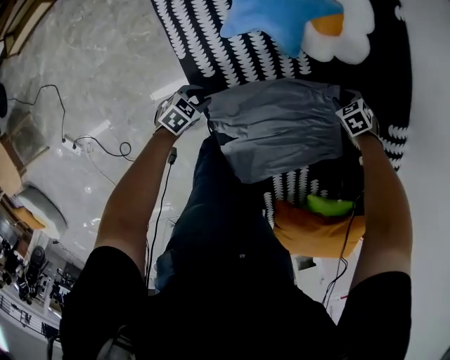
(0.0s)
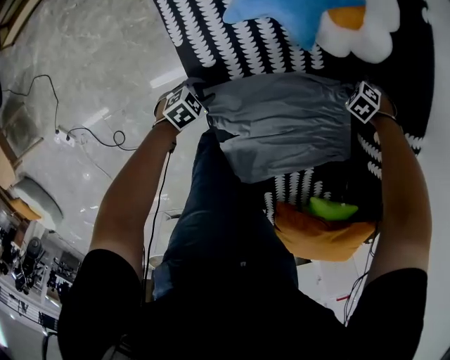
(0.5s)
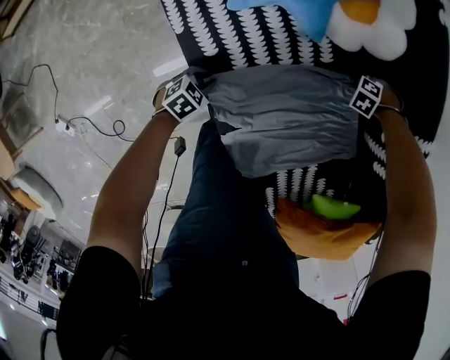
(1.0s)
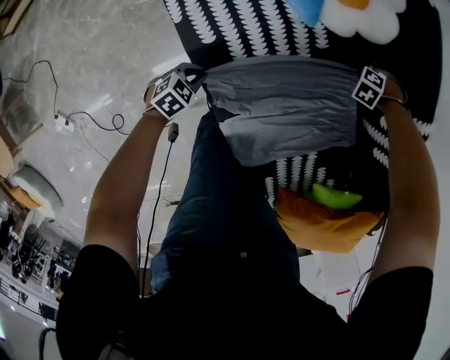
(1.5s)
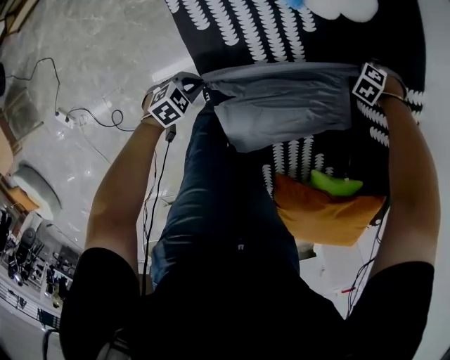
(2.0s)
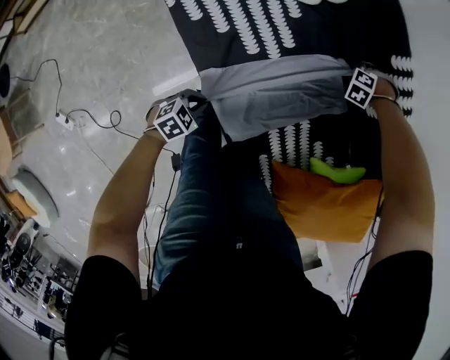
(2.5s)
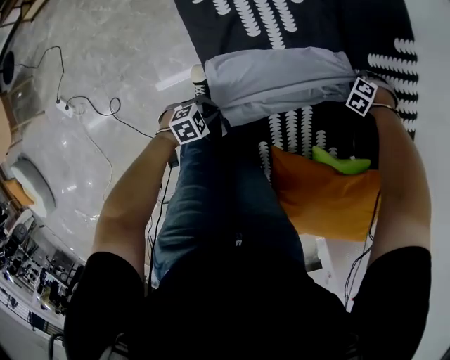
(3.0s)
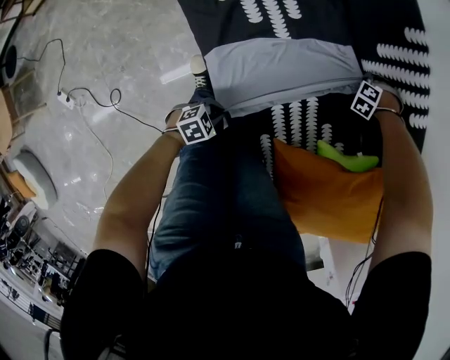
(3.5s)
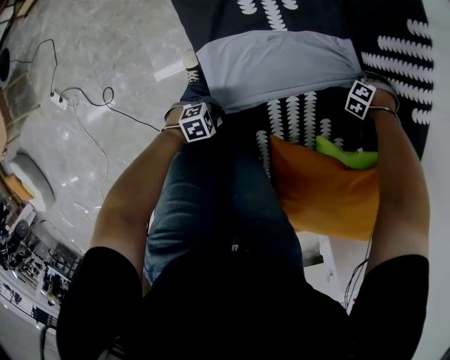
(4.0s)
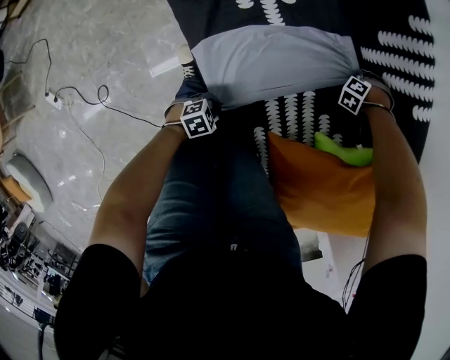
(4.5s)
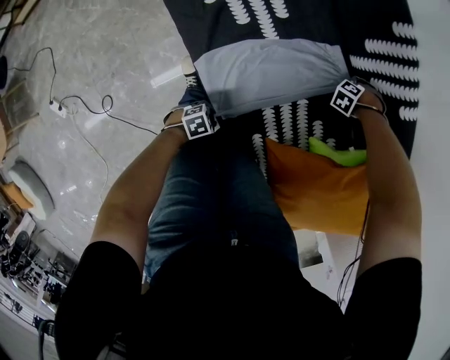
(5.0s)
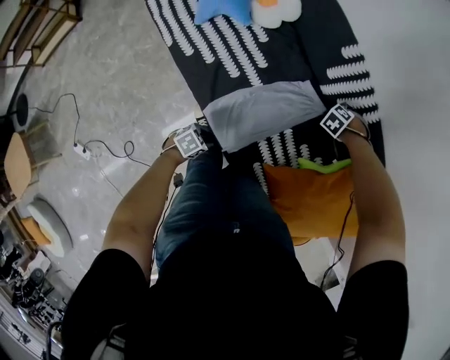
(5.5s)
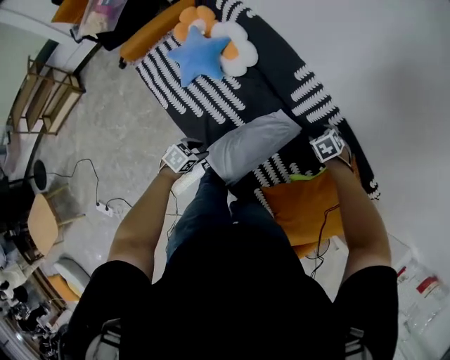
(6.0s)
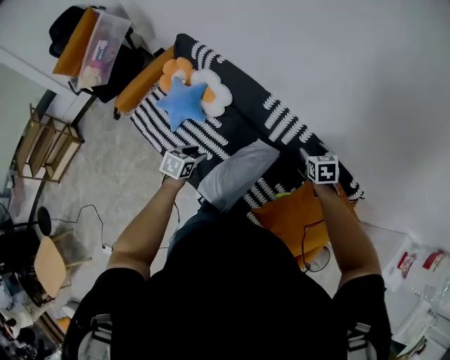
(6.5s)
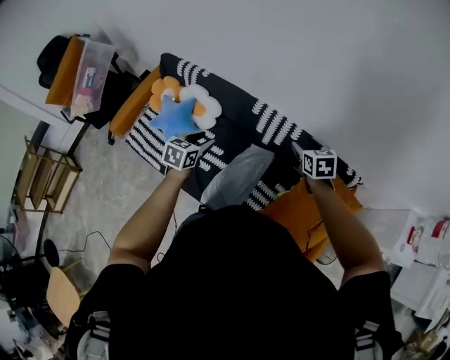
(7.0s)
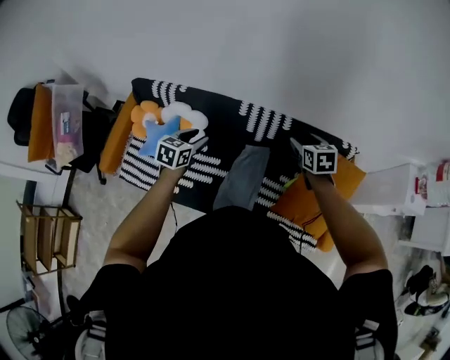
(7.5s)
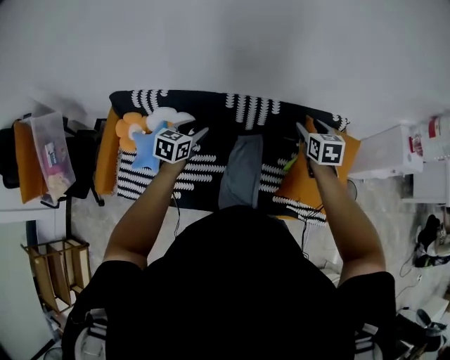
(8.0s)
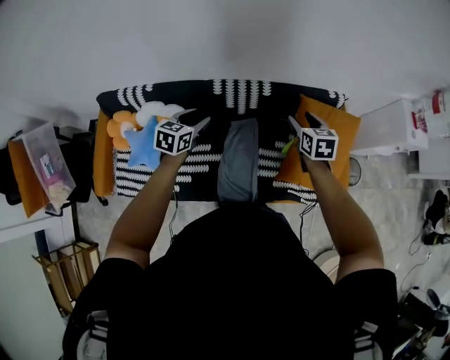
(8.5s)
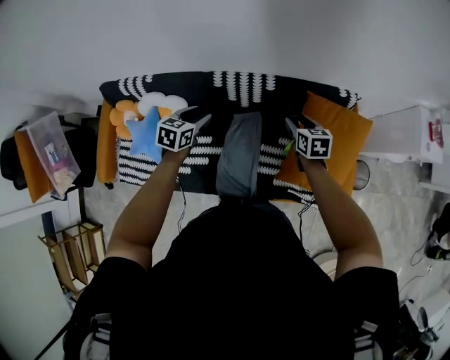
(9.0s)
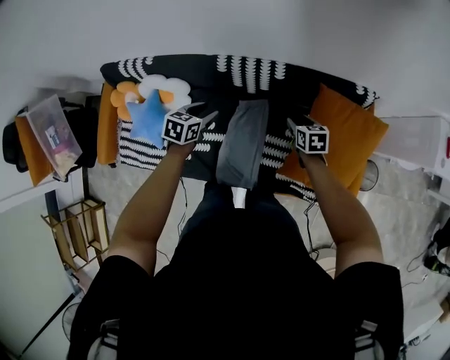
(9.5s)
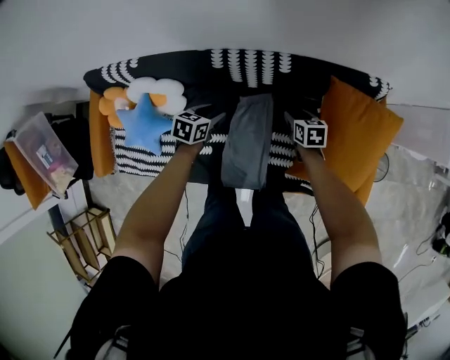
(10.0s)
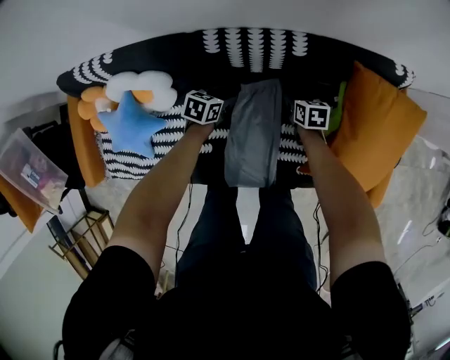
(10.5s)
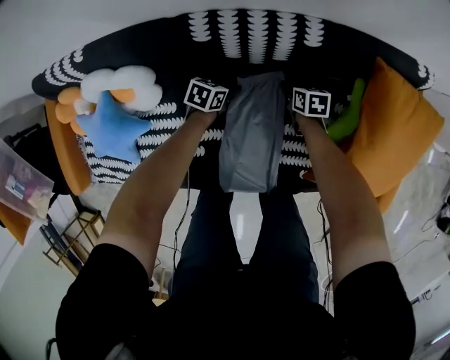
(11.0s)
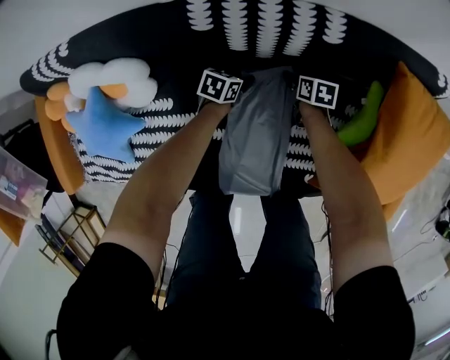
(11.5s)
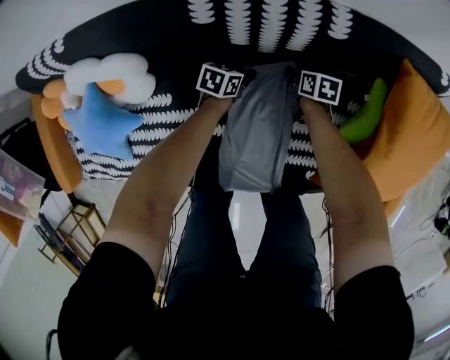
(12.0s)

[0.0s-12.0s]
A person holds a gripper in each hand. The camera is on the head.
0.0s to 2.0s: The right gripper goes downward and returns, roughly 10 cm each way, changes its angle by roughly 40 degrees, and closes up. Meanwhile the left gripper goes downward and returns, some 5 cm each way, and closes its fingers.
2.0s to 4.0s: The right gripper shifts by roughly 25 cm, while the left gripper moves roughly 35 cm.
4.0s to 6.0s: The grippers both shift upward by some 35 cm. The right gripper rolls clockwise, seen from behind, by some 70 degrees, and opens up; the left gripper opens its fingers.
6.0s to 8.0s: Both grippers move upward, roughly 30 cm. The right gripper twists roughly 70 degrees clockwise, seen from behind, while the left gripper turns by about 30 degrees.
8.0s to 10.0s: Both grippers travel together downward, some 35 cm. The left gripper swivels approximately 20 degrees; the right gripper changes its angle by roughly 30 degrees.
10.0s to 12.0s: Both grippers travel together downward, some 35 cm.

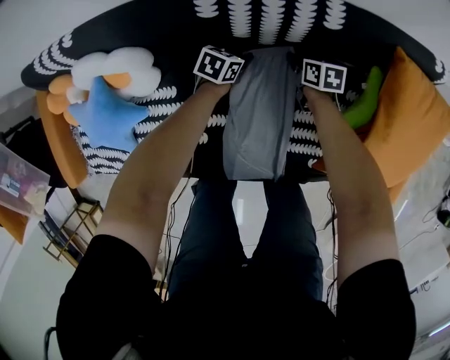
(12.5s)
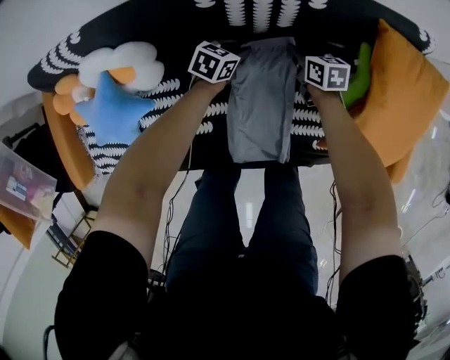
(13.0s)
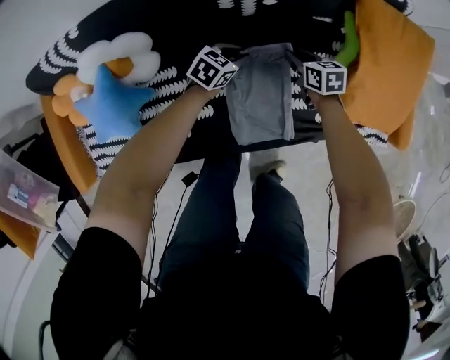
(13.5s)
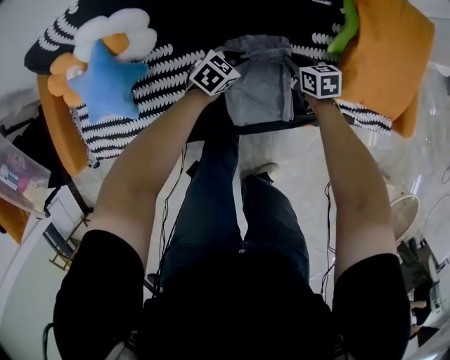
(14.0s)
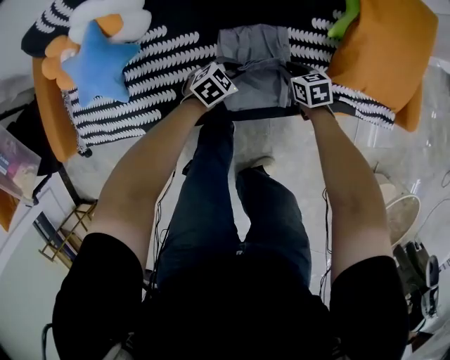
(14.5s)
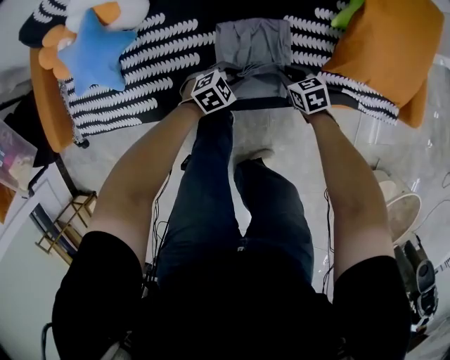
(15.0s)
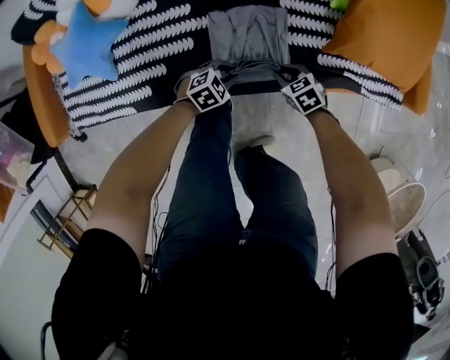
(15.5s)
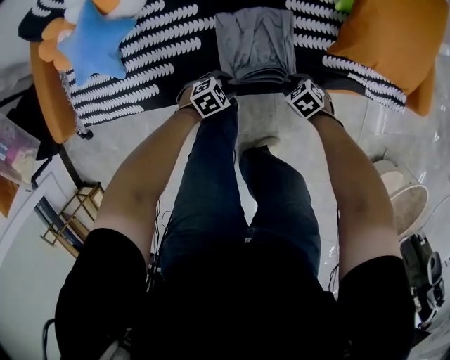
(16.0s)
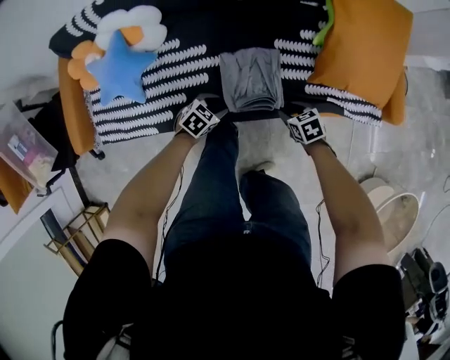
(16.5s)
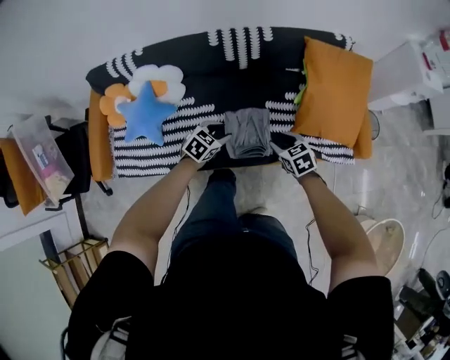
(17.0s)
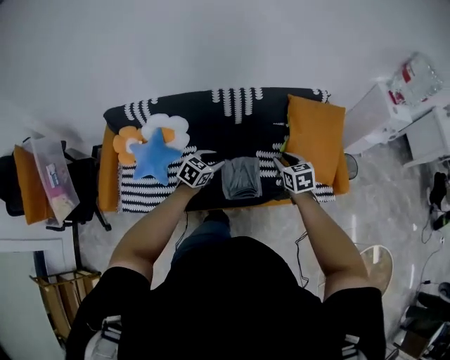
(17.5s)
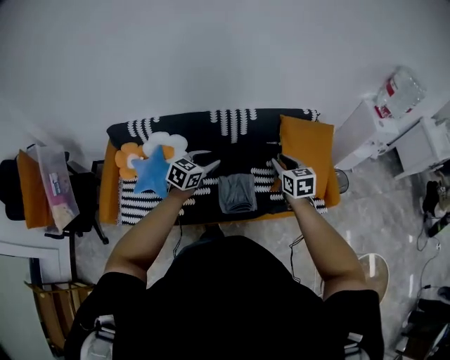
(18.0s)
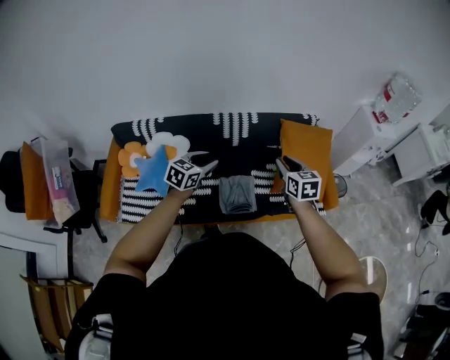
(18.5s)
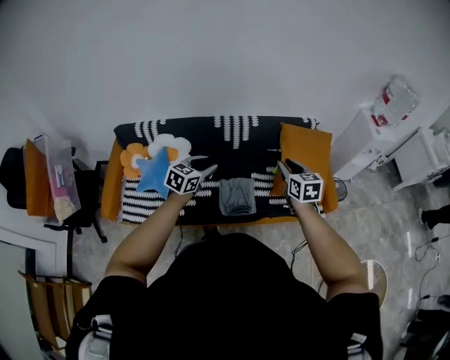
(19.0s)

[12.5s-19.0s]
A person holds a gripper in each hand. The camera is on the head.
12.5s to 14.5s: The grippers both shift backward by roughly 35 cm. The left gripper rotates some 40 degrees.
14.5s to 17.0s: Both grippers move upward, some 30 cm. The right gripper opens up; the left gripper opens its fingers.
17.0s to 19.0s: The two grippers go roughly 35 cm upward. The left gripper turns by roughly 20 degrees. The right gripper changes its angle by roughly 30 degrees.

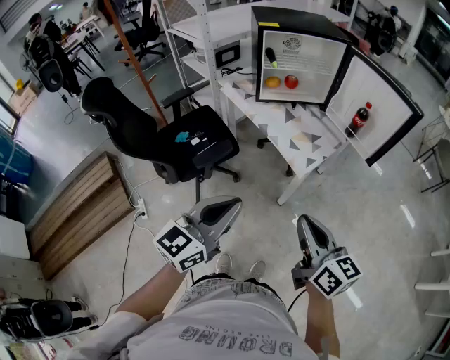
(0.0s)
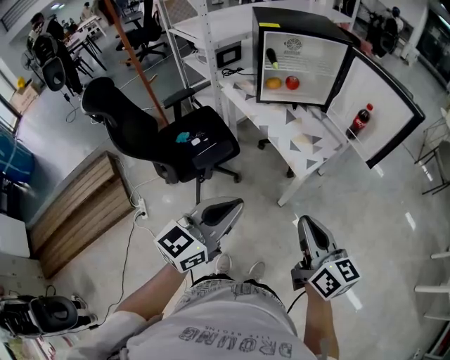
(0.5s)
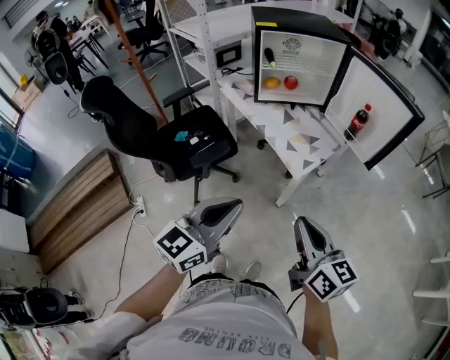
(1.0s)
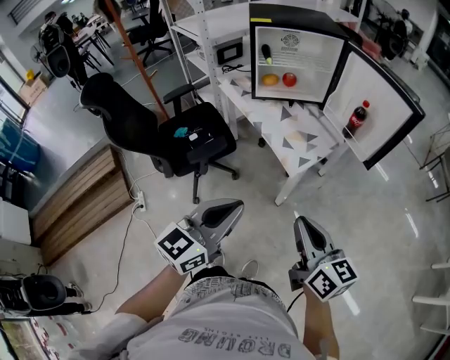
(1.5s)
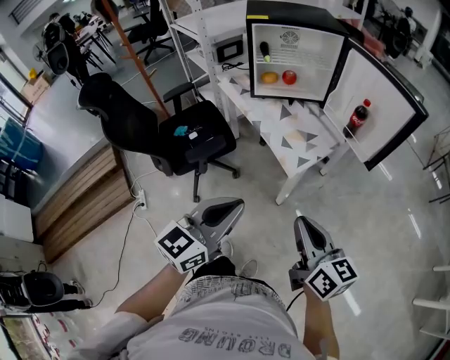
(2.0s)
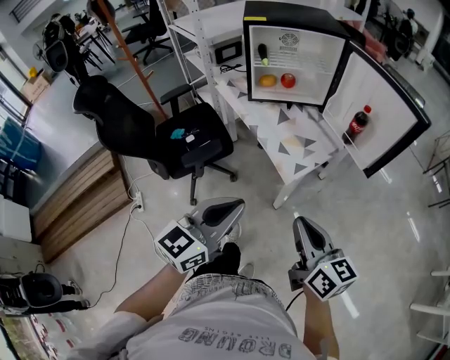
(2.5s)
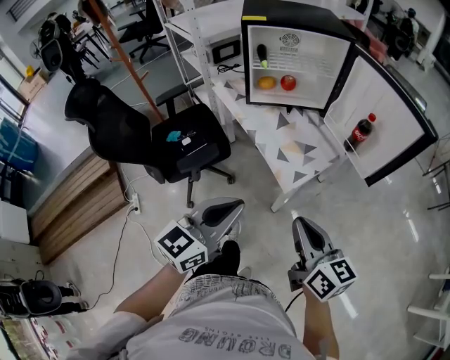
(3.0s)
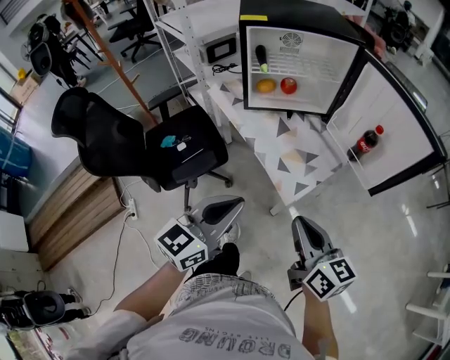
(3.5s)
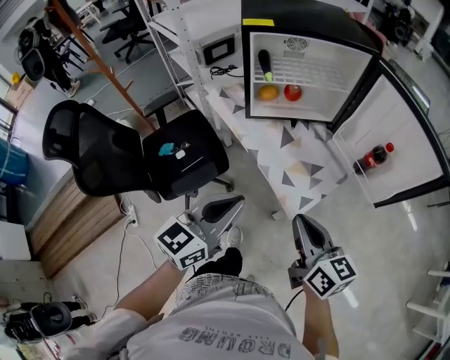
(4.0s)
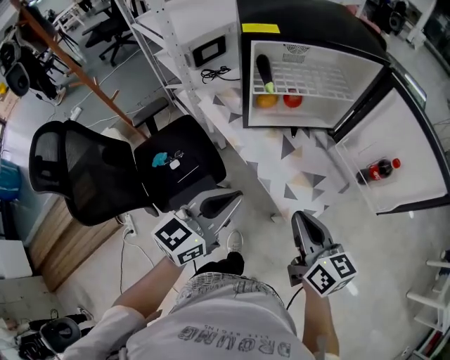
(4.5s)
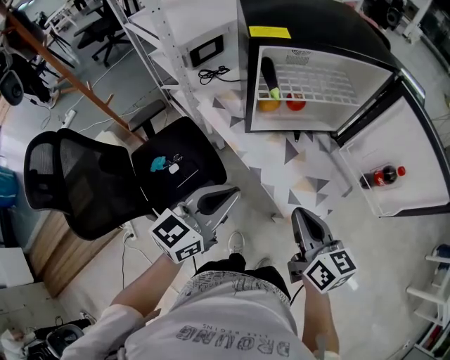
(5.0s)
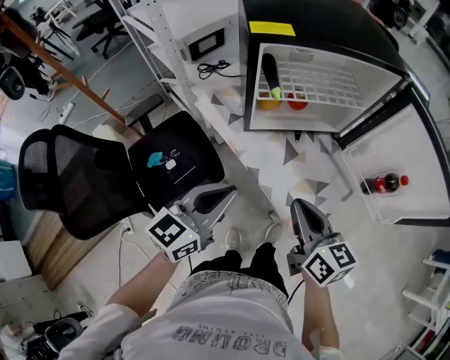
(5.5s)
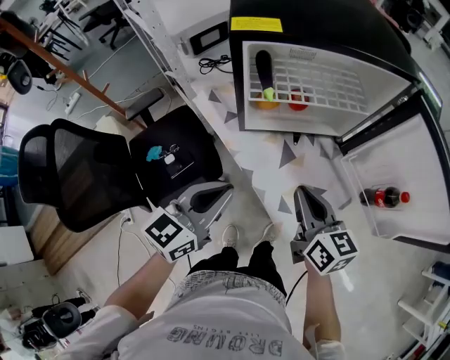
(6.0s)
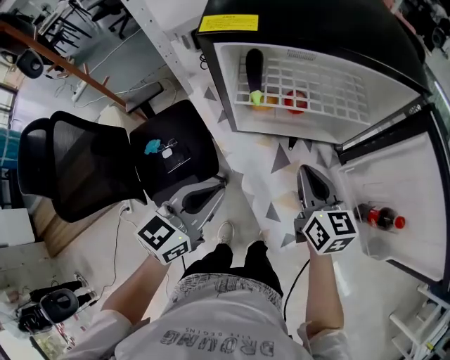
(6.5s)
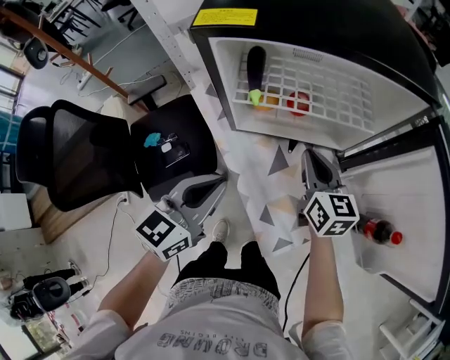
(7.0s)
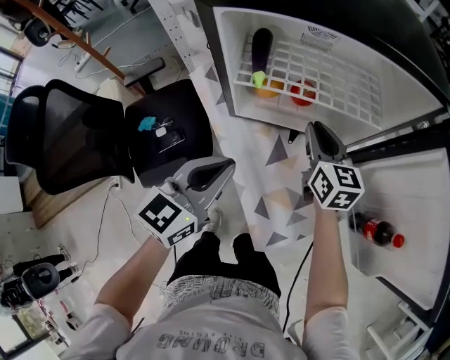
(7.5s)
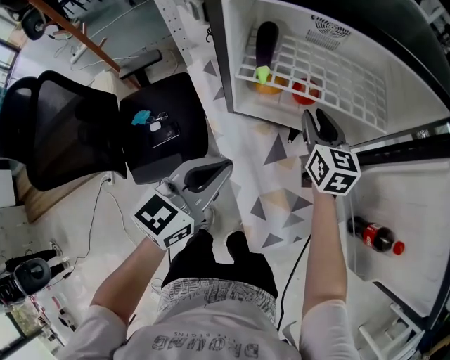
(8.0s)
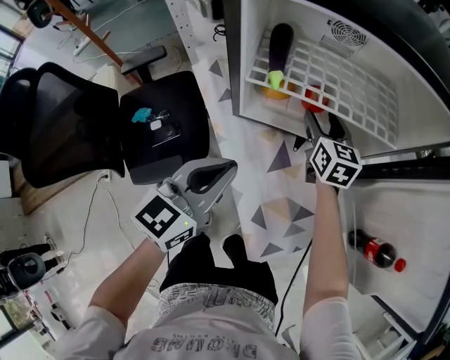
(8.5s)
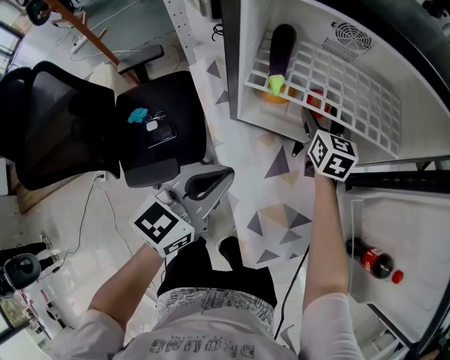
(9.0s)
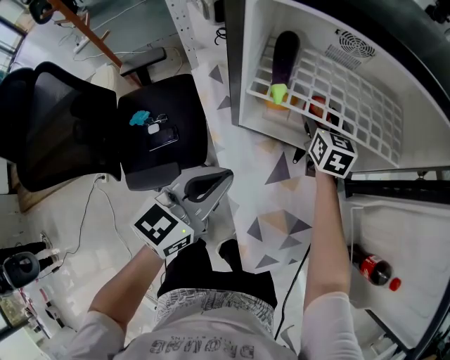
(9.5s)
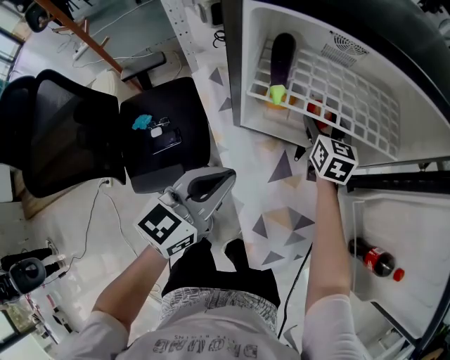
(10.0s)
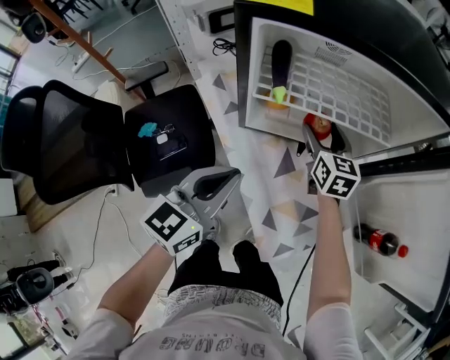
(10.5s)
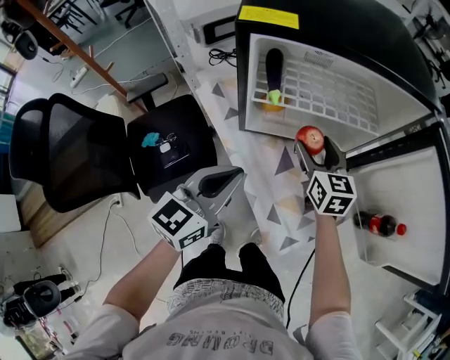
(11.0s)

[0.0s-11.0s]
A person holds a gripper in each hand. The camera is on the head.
0.0s to 2.0s: Both grippers move to the right, roughly 10 cm.
2.0s to 3.5s: The two grippers go approximately 15 cm forward.
3.5s to 5.5s: Both grippers move forward and to the left, approximately 25 cm.
5.5s to 7.5s: The right gripper goes some 25 cm forward. The left gripper is displaced forward and to the right by approximately 15 cm.
7.5s to 9.0s: The right gripper heads forward and downward, covering approximately 15 cm, and opens its fingers. The left gripper travels downward by roughly 5 cm.
9.0s to 11.0s: The left gripper goes roughly 5 cm upward; the right gripper is displaced backward and upward by some 15 cm.
